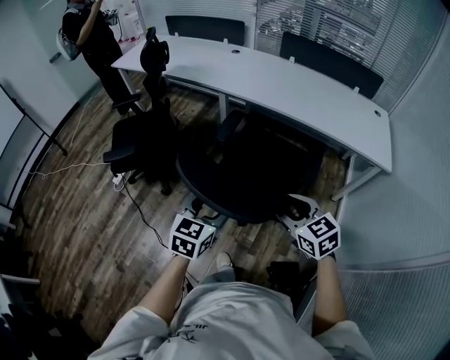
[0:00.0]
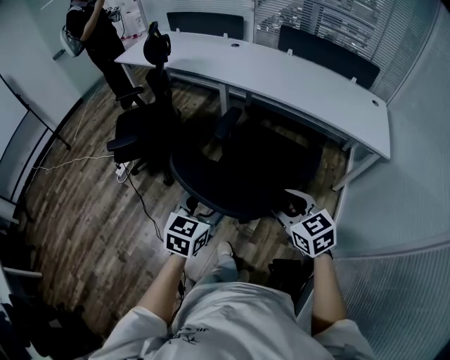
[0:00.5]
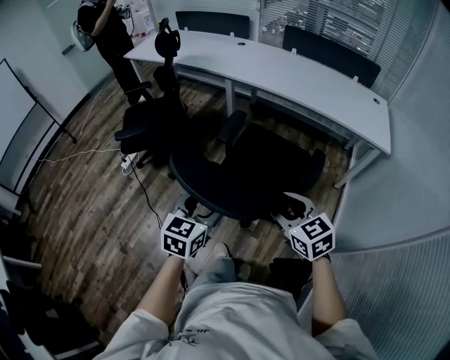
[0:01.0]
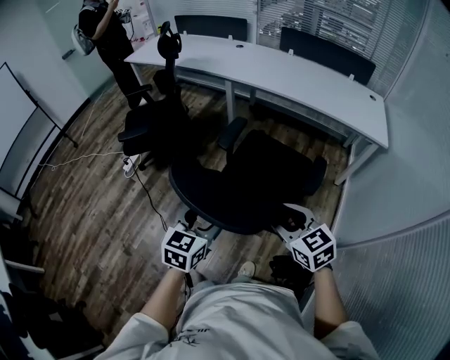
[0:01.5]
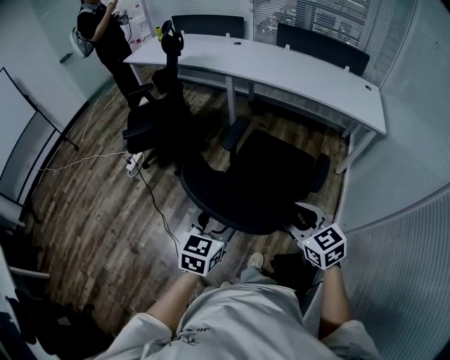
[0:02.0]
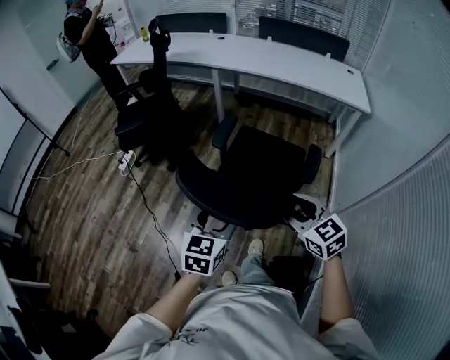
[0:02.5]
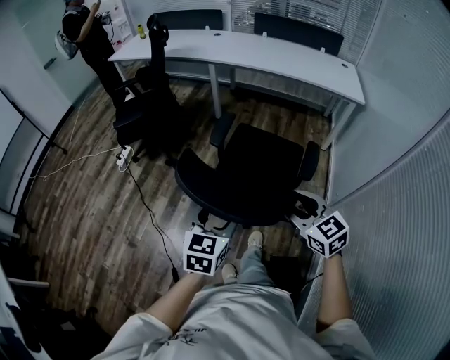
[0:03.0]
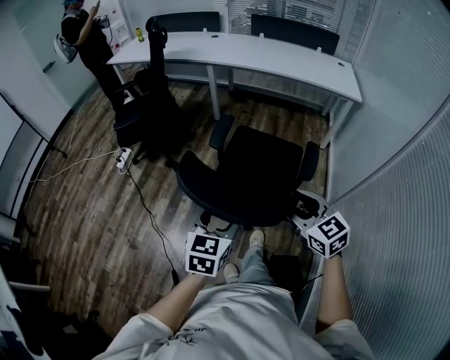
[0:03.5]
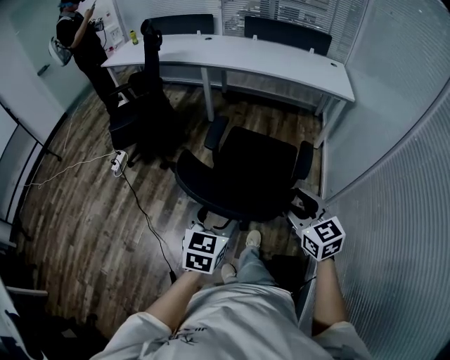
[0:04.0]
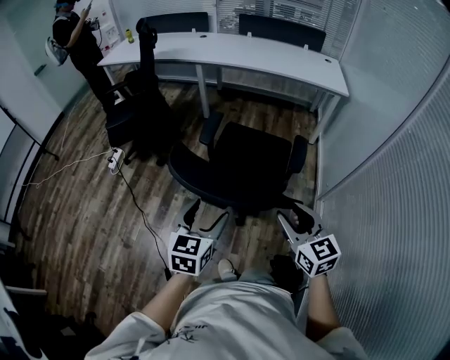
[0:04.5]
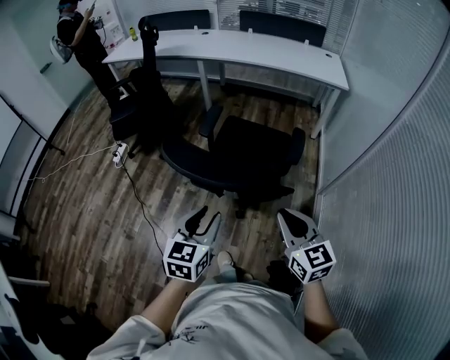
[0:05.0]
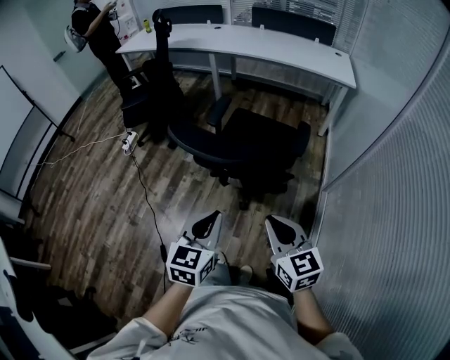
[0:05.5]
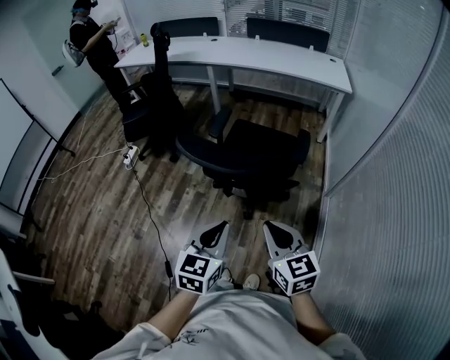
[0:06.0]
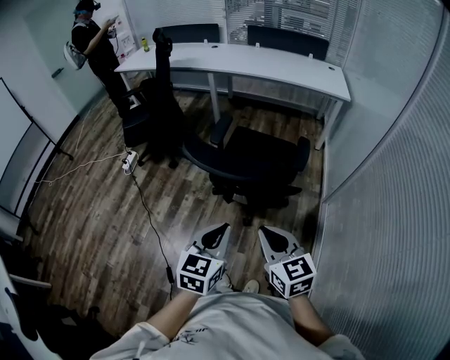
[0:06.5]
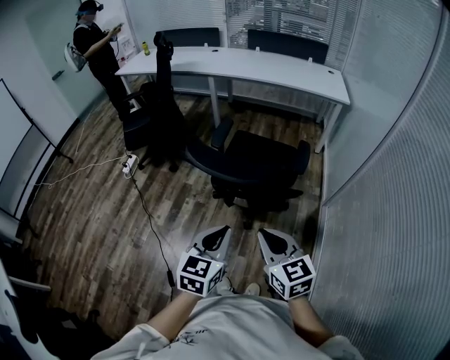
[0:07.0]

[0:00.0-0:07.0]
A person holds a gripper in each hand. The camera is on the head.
0:00.0 to 0:02.0: Both grippers travel together backward, some 25 cm.
0:02.0 to 0:03.5: The two grippers go some 15 cm backward.
0:03.5 to 0:05.0: Both grippers travel together backward, some 10 cm. The left gripper closes its fingers. Meanwhile the right gripper closes.
0:05.0 to 0:07.0: The right gripper heads to the left and backward, covering roughly 15 cm, while the left gripper is displaced backward by roughly 5 cm, and closes up.

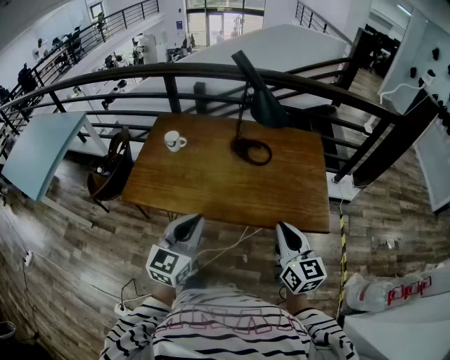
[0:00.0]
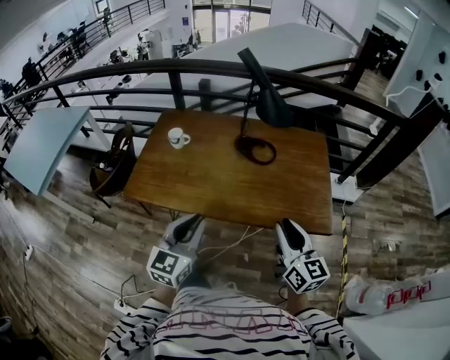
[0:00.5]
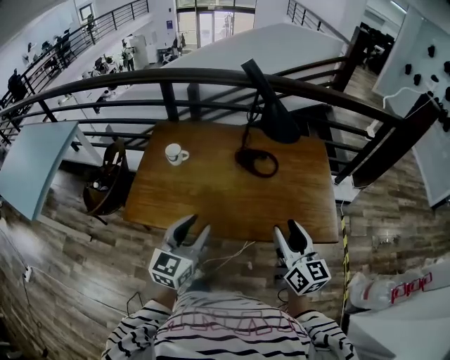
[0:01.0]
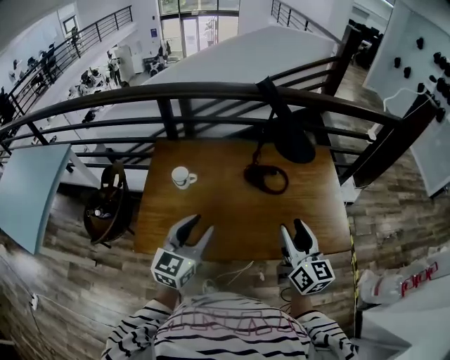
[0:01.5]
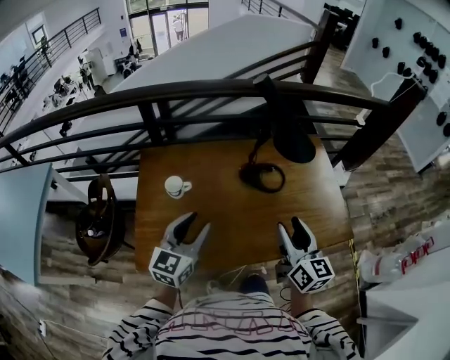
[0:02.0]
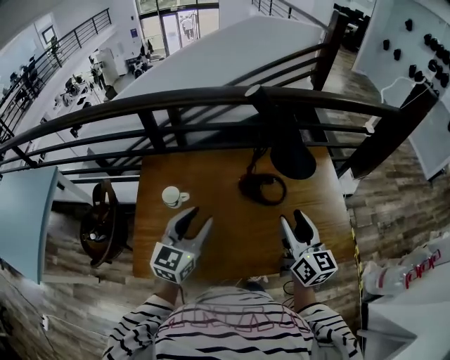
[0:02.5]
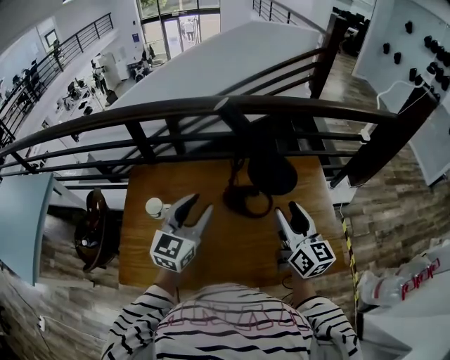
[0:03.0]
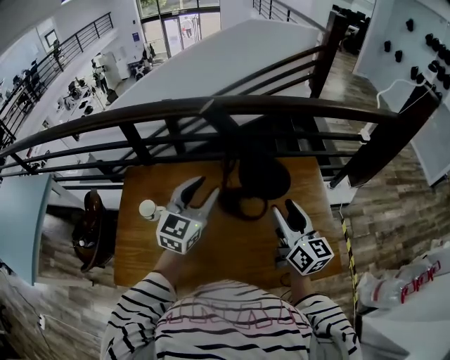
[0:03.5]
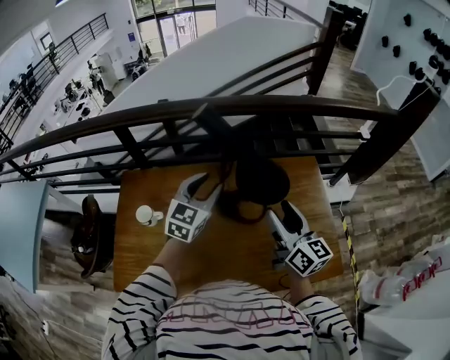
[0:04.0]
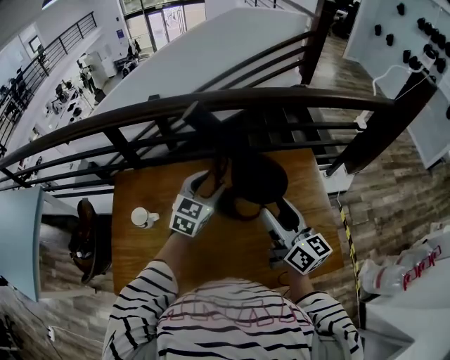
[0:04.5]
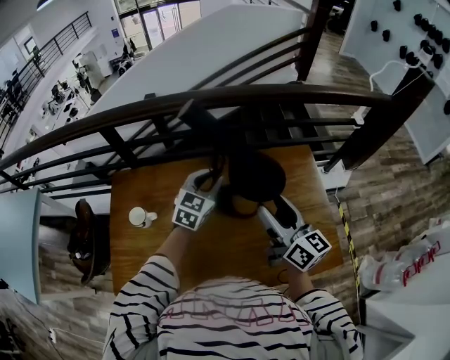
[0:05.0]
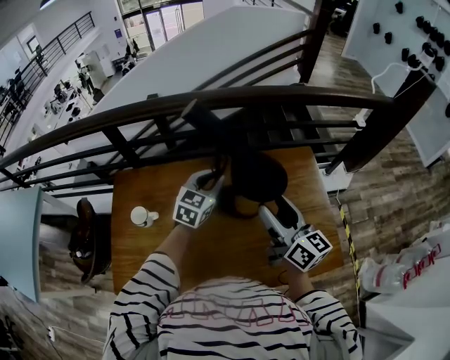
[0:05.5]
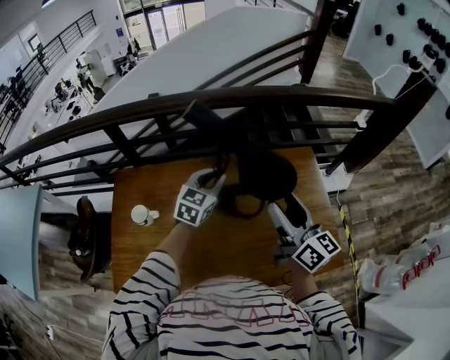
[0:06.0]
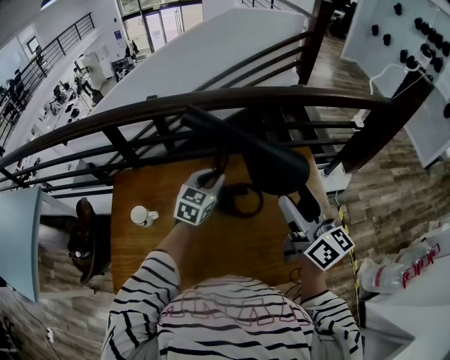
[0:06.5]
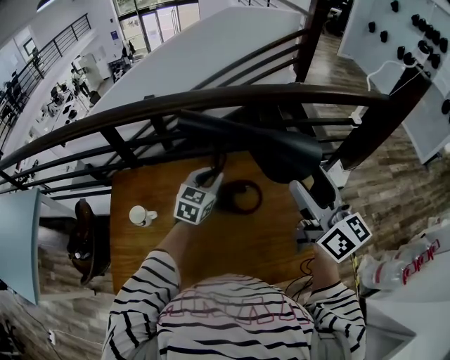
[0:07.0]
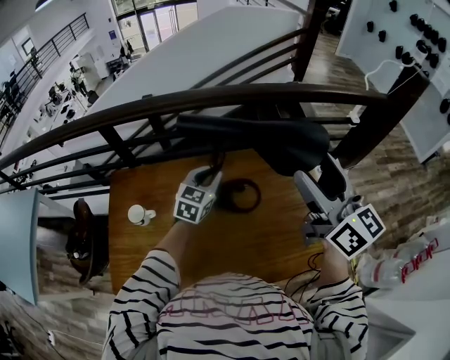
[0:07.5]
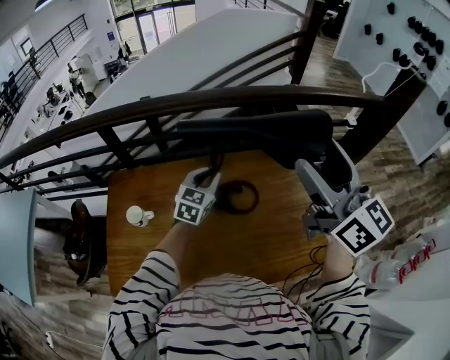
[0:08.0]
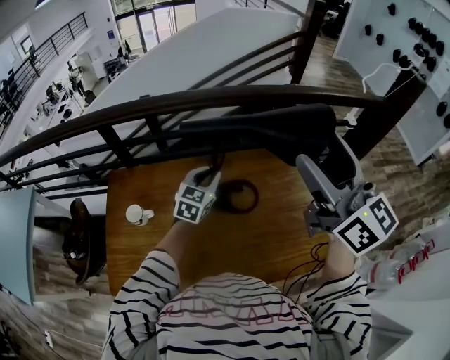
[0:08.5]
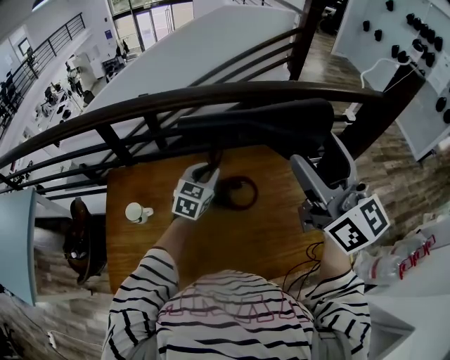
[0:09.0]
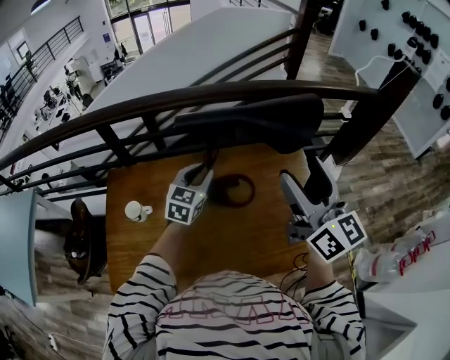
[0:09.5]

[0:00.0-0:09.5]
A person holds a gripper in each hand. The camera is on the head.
0:00.0 to 0:02.0: Both grippers move forward and to the left, some 30 cm. The left gripper opens. Meanwhile the right gripper rotates approximately 20 degrees, and opens up.
0:02.0 to 0:04.0: The grippers both shift forward and to the right by about 30 cm.
0:04.0 to 0:05.5: The left gripper is displaced downward by approximately 5 cm, and closes up.
0:05.5 to 0:07.5: The right gripper travels upward by about 15 cm.
0:07.5 to 0:09.5: The right gripper travels upward and back again, approximately 5 cm each way.

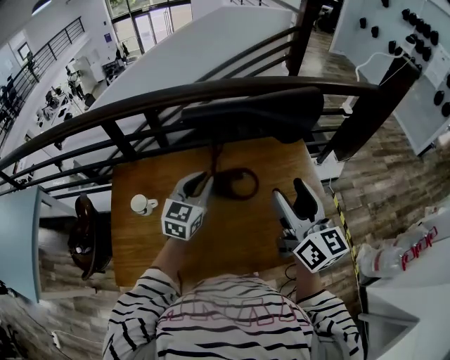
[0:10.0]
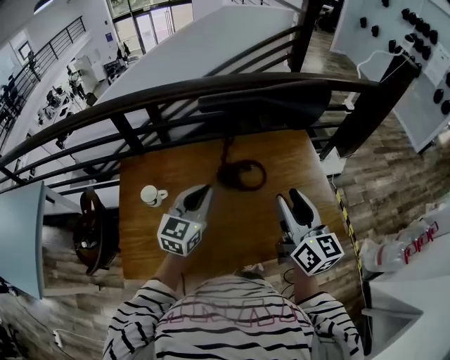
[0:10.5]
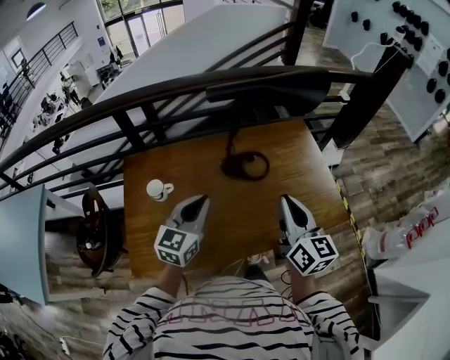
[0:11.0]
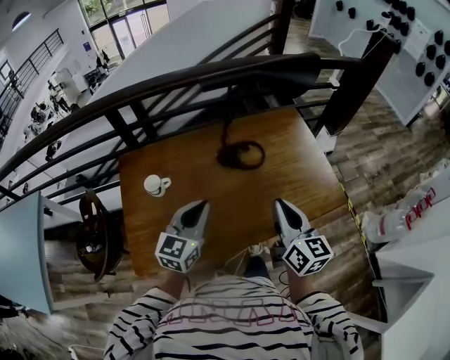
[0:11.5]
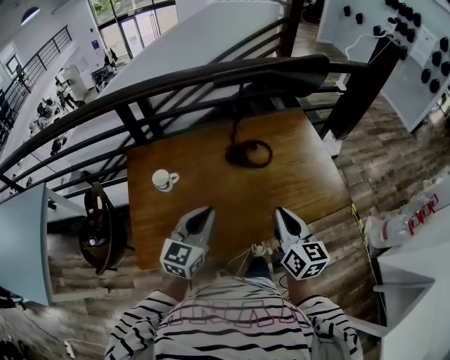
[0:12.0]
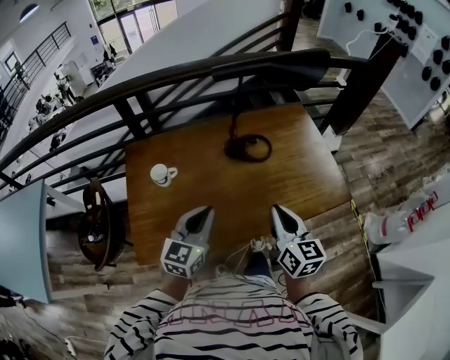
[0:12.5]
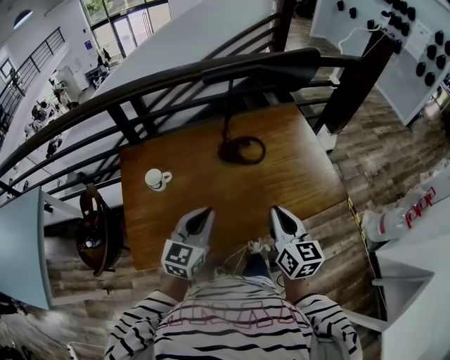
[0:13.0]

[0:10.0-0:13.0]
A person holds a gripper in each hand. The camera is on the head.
0:10.0 to 0:11.5: The left gripper moves backward, some 20 cm. Meanwhile the right gripper is displaced backward, downward and to the left by approximately 20 cm, and closes its fingers.
0:11.5 to 0:13.0: The grippers move only a little.

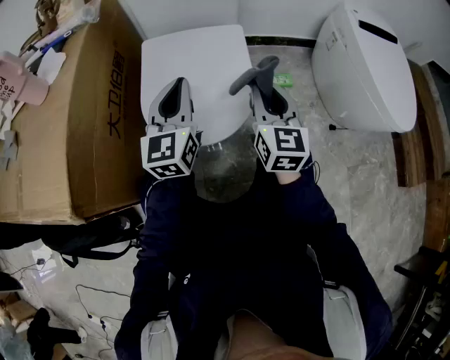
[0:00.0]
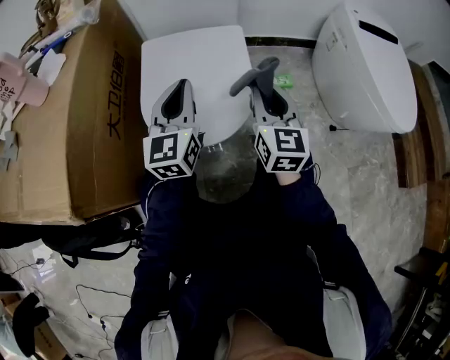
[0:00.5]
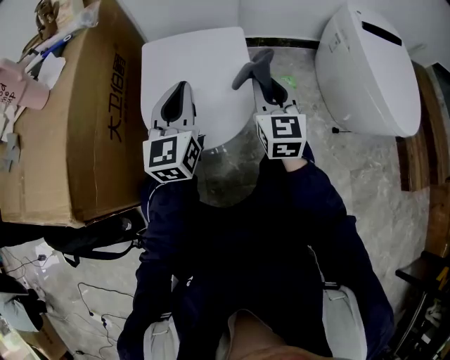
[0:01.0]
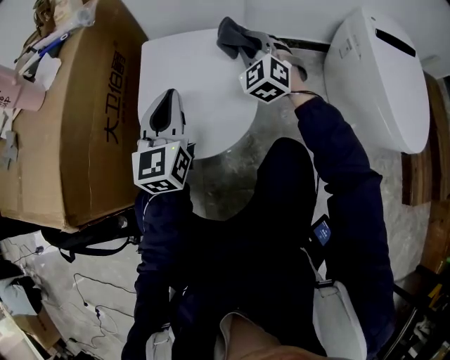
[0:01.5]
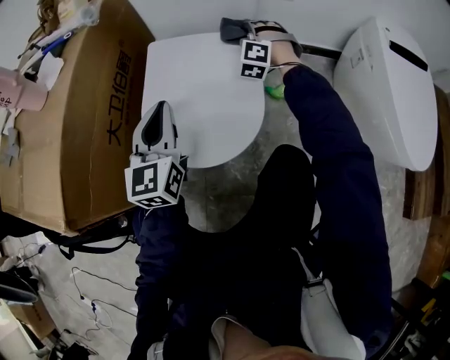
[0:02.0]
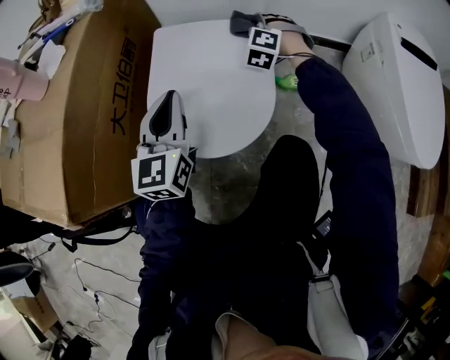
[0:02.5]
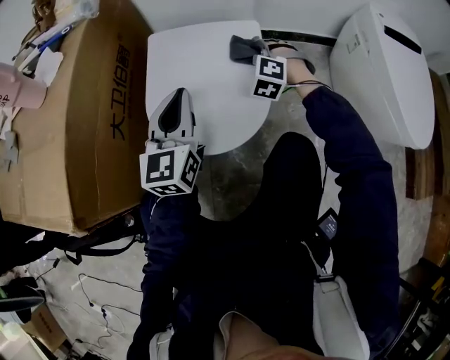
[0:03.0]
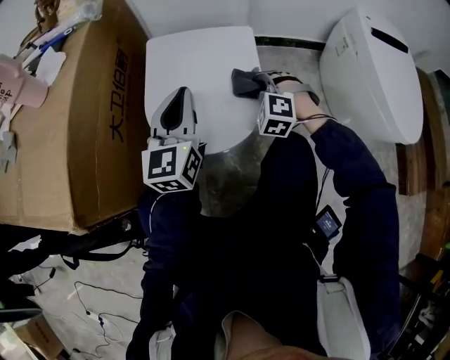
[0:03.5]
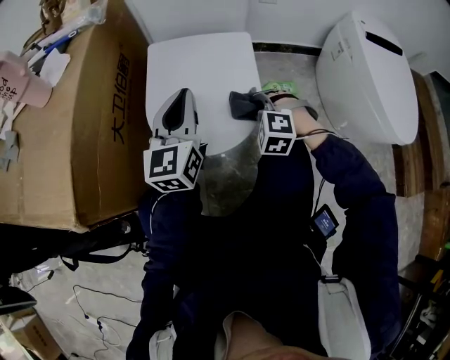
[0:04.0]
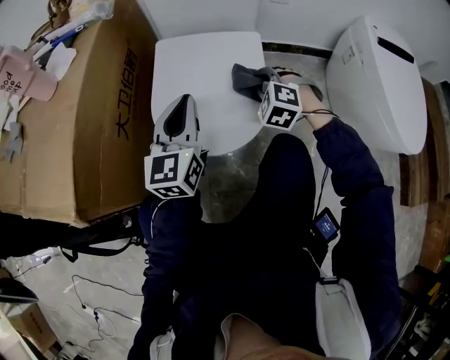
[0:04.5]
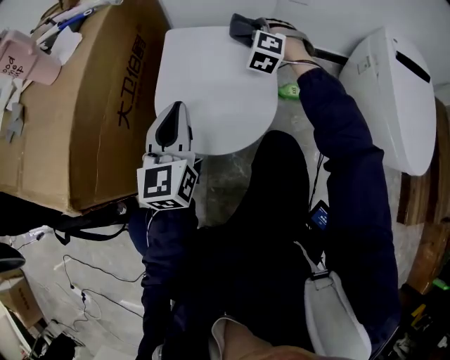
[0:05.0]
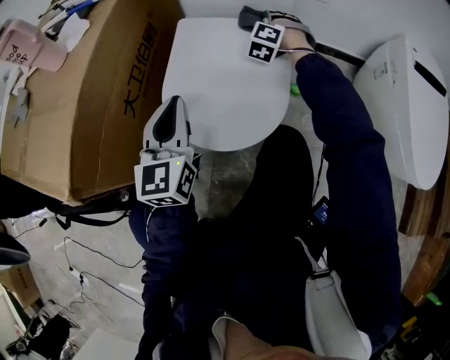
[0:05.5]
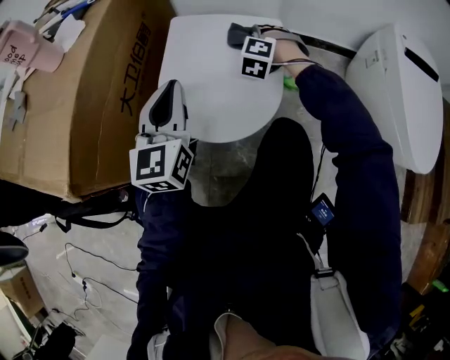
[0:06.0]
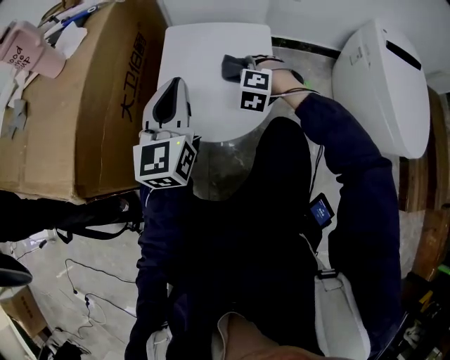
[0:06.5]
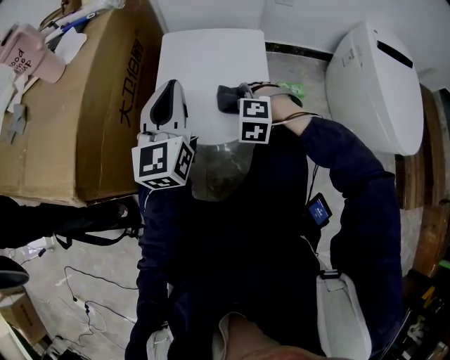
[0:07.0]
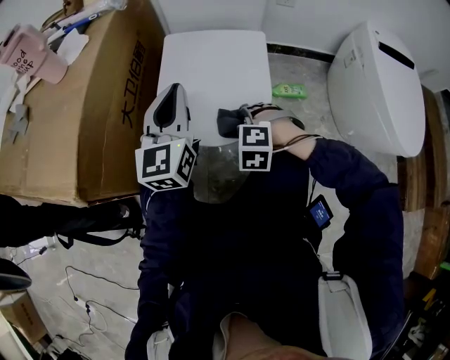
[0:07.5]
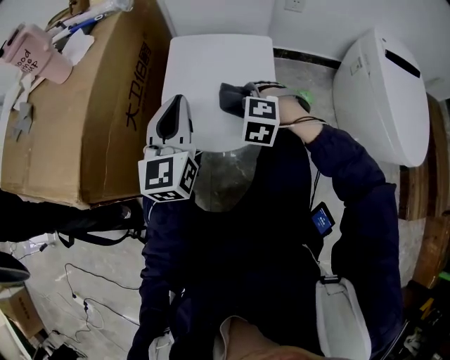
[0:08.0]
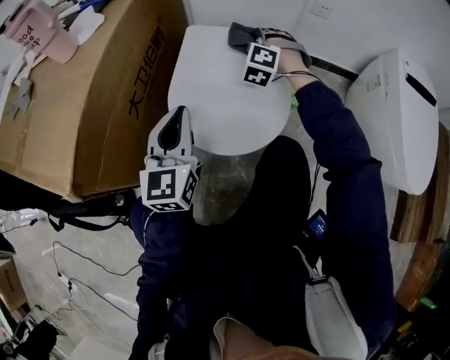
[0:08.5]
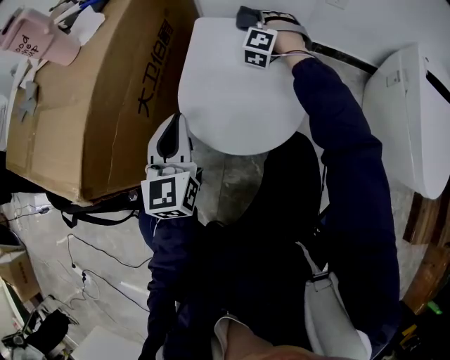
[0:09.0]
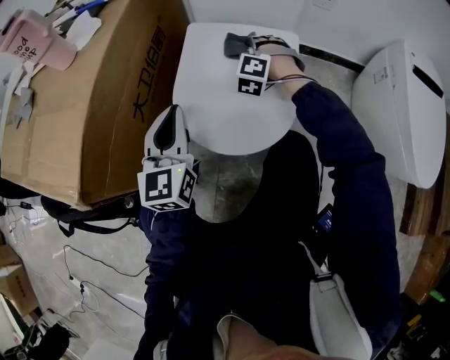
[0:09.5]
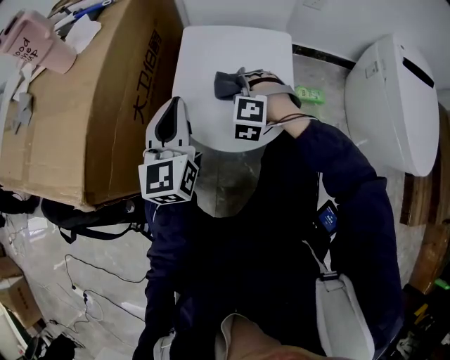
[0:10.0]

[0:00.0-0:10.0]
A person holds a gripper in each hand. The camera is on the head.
0:08.0 to 0:10.0: The left gripper moves some 5 cm.
